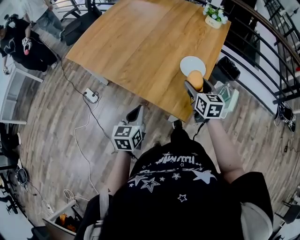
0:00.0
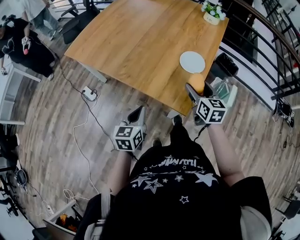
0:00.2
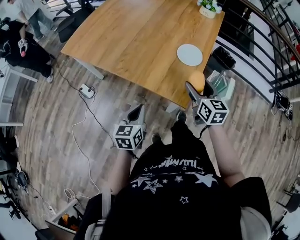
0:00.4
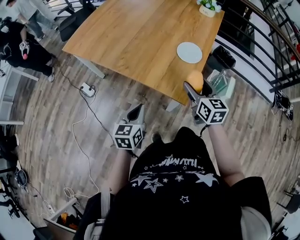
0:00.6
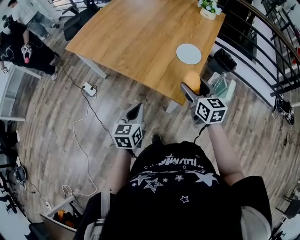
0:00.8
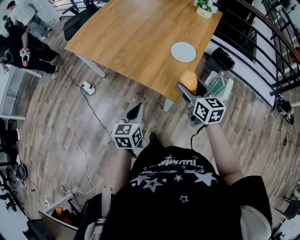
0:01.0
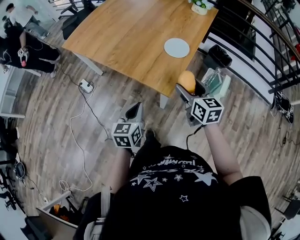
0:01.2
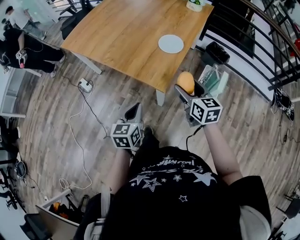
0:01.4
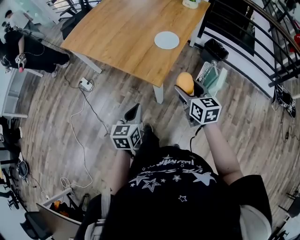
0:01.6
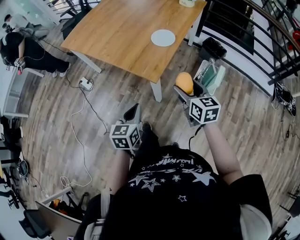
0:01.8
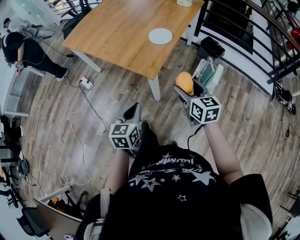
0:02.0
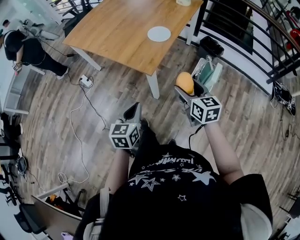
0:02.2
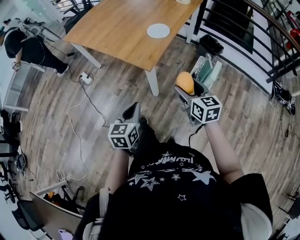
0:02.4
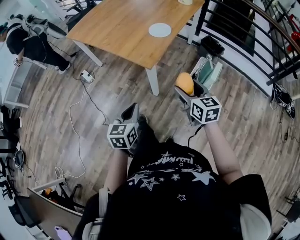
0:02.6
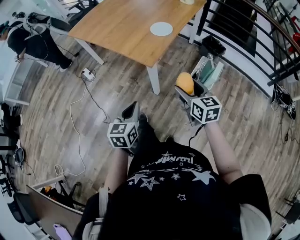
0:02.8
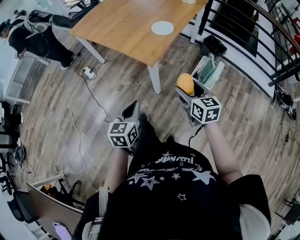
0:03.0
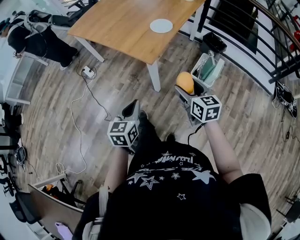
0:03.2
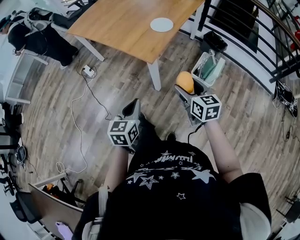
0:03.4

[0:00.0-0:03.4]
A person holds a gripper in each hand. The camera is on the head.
0:00.0 to 0:01.6: The right gripper moves backward, approximately 15 cm. Meanwhile the left gripper travels backward and to the right by about 15 cm.
0:01.6 to 0:03.4: The grippers both shift backward by approximately 10 cm.

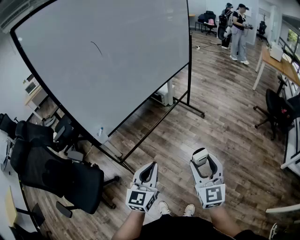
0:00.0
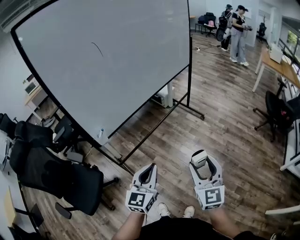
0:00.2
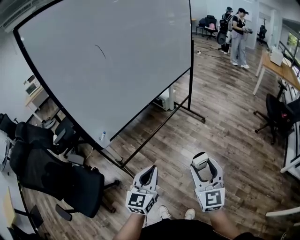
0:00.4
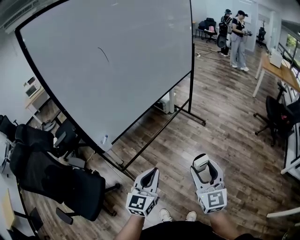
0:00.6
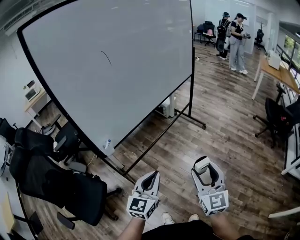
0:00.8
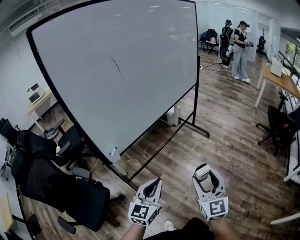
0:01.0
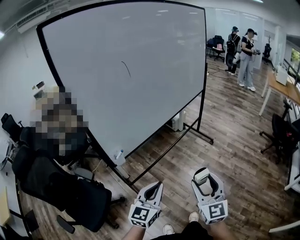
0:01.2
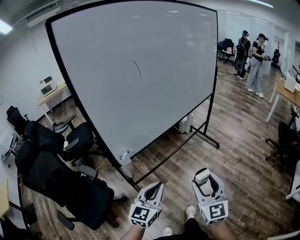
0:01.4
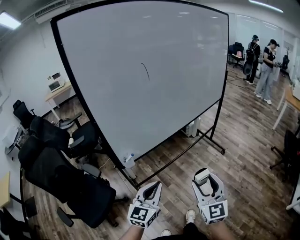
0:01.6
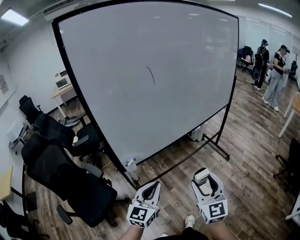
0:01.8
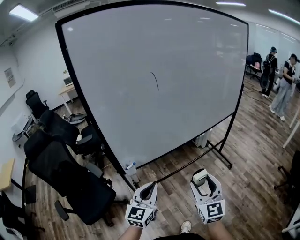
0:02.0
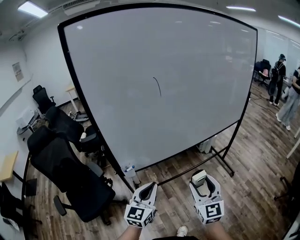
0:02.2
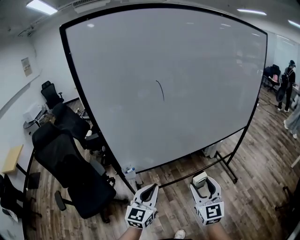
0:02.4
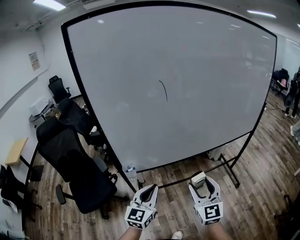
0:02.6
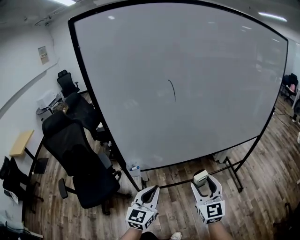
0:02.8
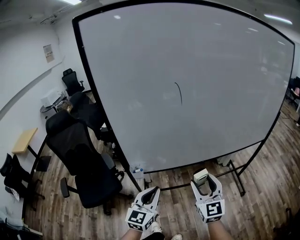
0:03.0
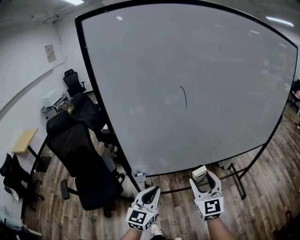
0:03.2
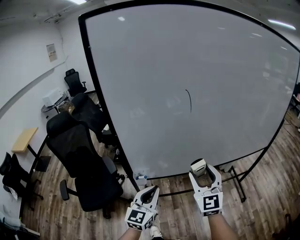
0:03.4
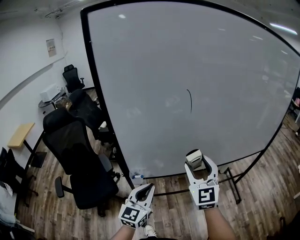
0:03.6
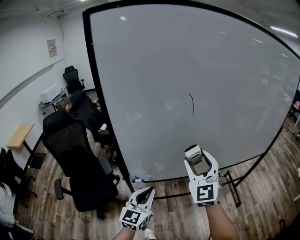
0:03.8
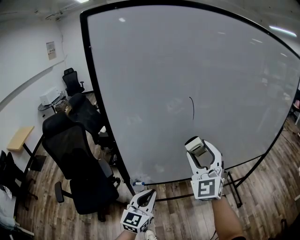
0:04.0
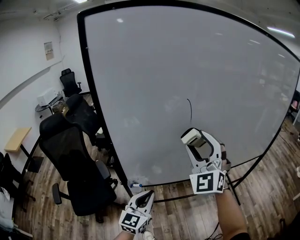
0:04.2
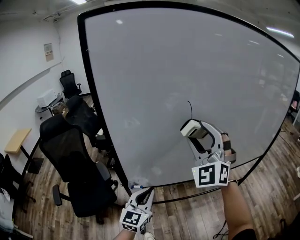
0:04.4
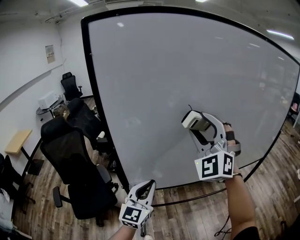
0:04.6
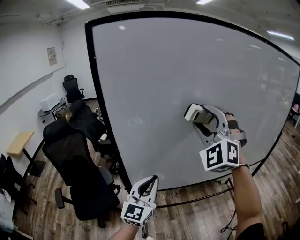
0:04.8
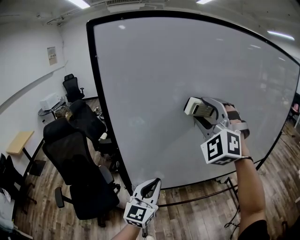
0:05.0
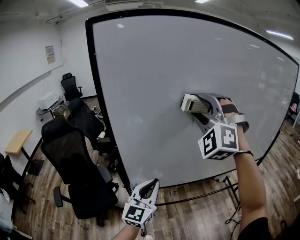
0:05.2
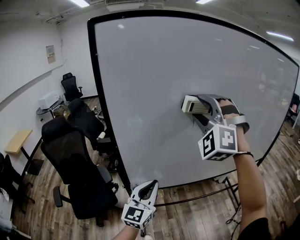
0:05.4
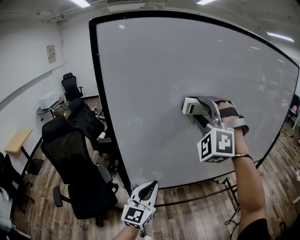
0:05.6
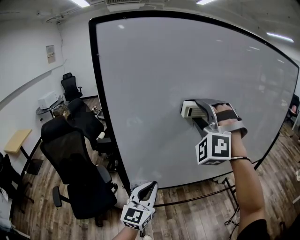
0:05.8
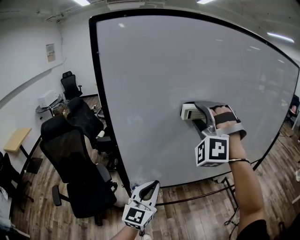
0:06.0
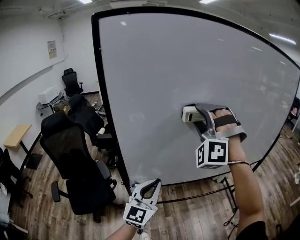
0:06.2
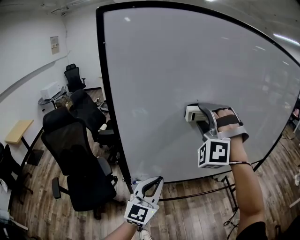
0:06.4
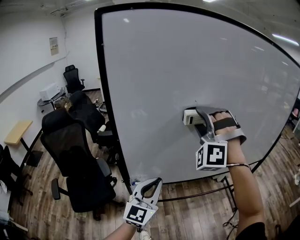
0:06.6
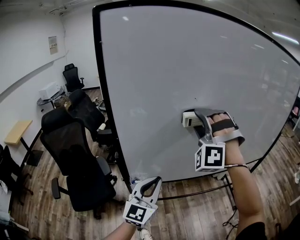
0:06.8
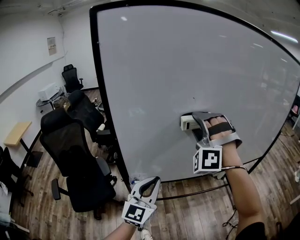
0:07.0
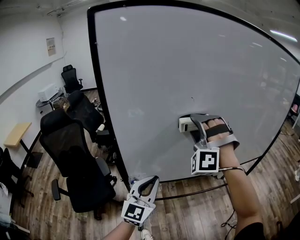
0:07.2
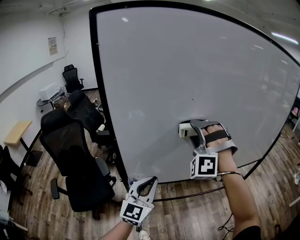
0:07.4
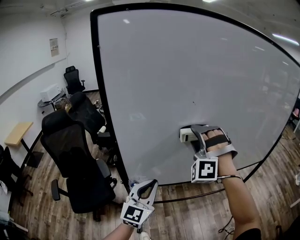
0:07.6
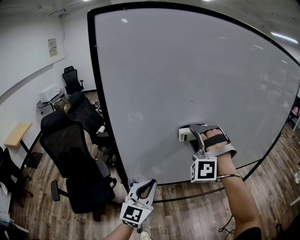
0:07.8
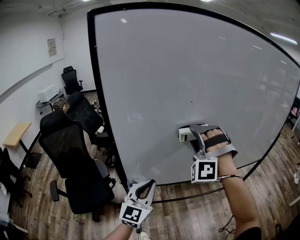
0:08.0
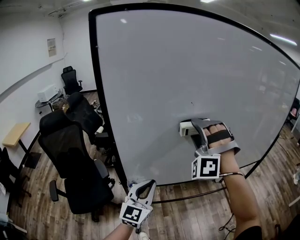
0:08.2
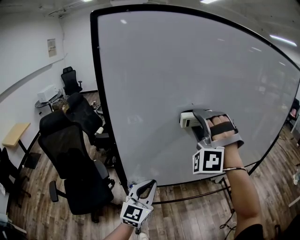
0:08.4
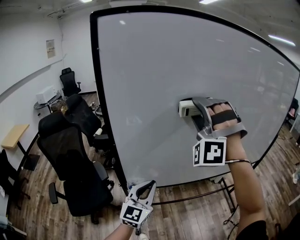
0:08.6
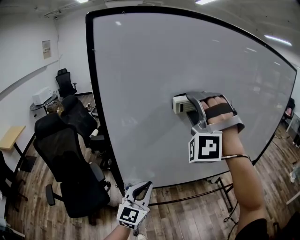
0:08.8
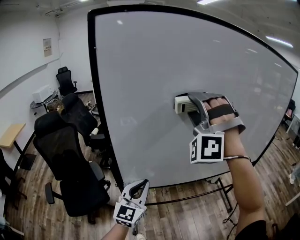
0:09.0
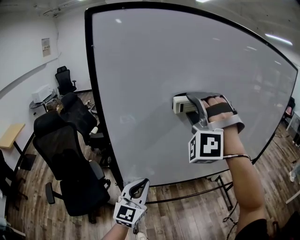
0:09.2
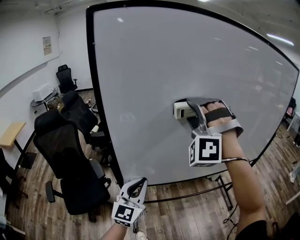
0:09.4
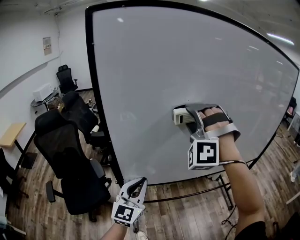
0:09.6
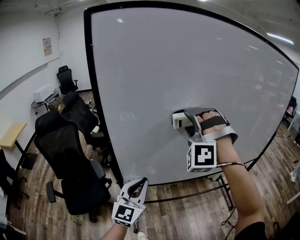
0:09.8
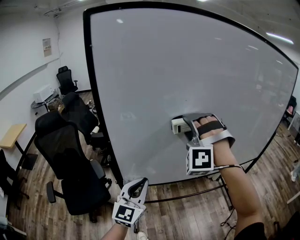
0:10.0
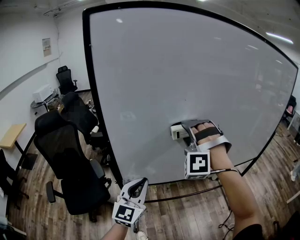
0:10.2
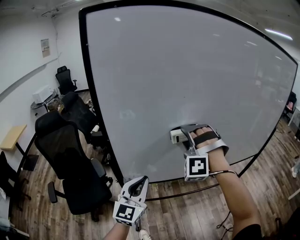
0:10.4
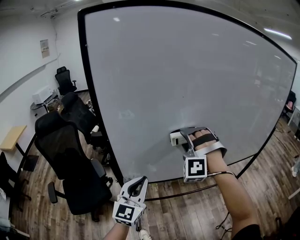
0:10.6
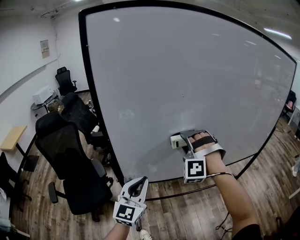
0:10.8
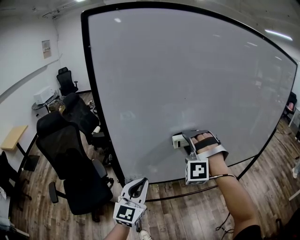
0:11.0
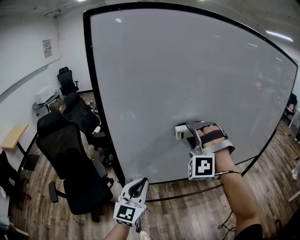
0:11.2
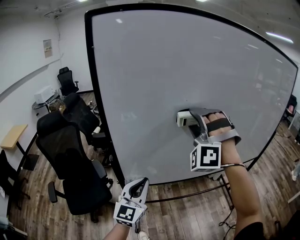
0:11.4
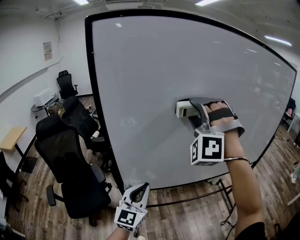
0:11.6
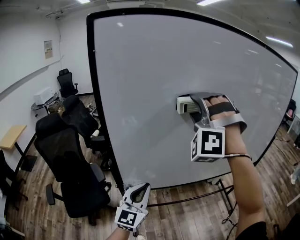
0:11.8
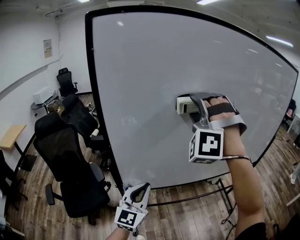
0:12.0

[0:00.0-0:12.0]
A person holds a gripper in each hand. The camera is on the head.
0:00.0 to 0:01.6: The left gripper ends up roughly 15 cm from where it was.
0:01.6 to 0:03.0: The left gripper moves about 15 cm, and changes its angle by roughly 30 degrees.
0:03.0 to 0:04.4: The left gripper ends up some 10 cm from where it was.
0:04.4 to 0:06.0: The left gripper heads upward, covering approximately 5 cm.

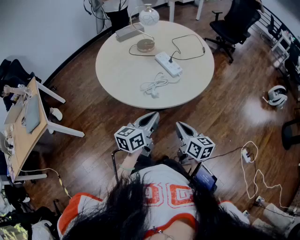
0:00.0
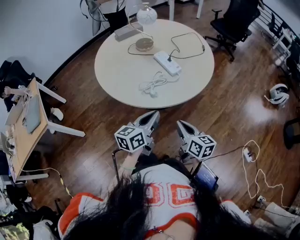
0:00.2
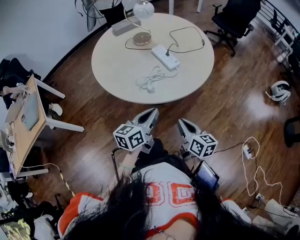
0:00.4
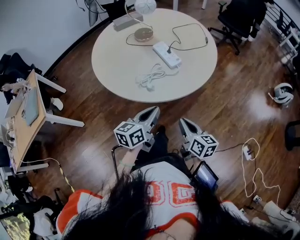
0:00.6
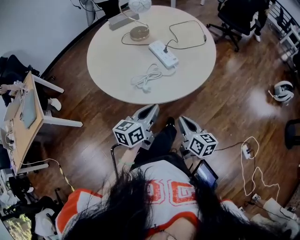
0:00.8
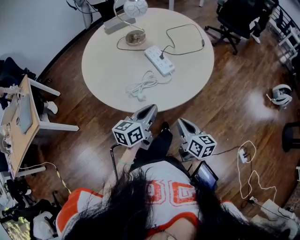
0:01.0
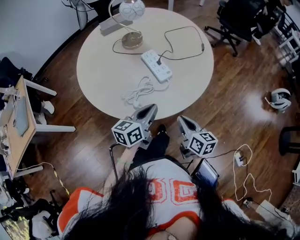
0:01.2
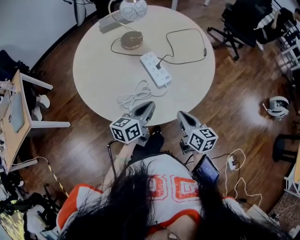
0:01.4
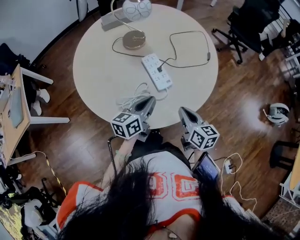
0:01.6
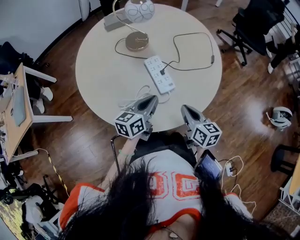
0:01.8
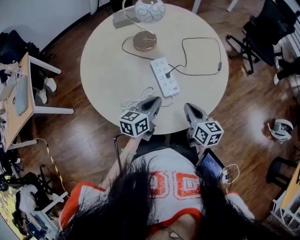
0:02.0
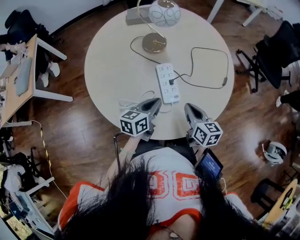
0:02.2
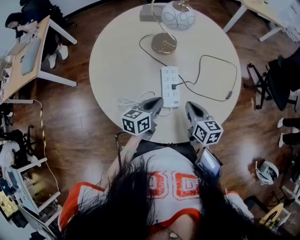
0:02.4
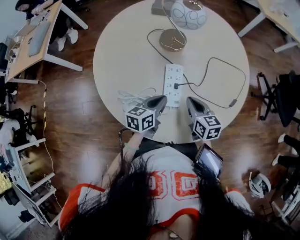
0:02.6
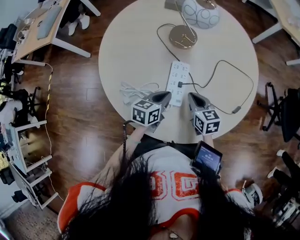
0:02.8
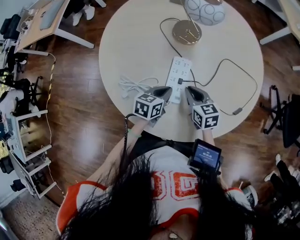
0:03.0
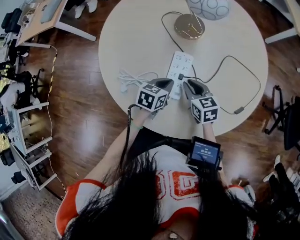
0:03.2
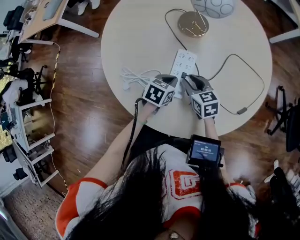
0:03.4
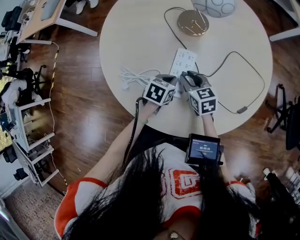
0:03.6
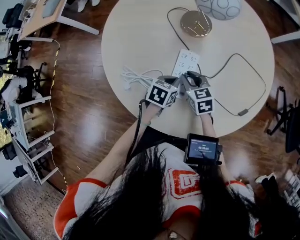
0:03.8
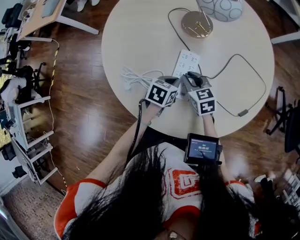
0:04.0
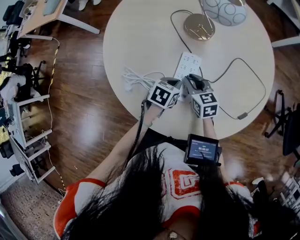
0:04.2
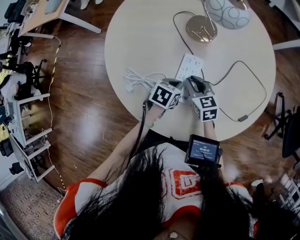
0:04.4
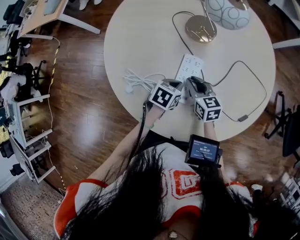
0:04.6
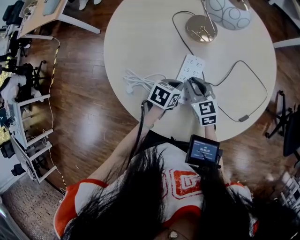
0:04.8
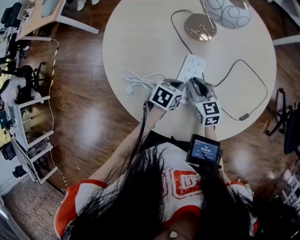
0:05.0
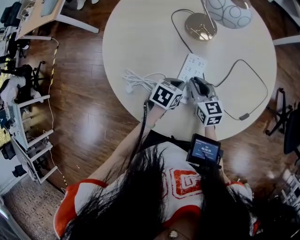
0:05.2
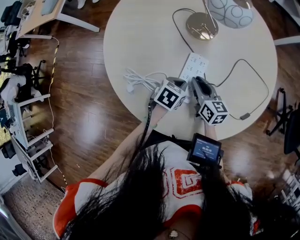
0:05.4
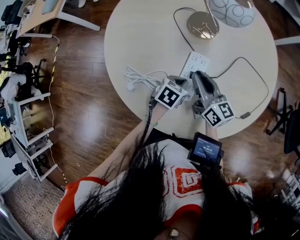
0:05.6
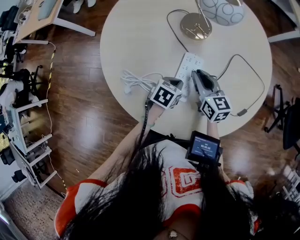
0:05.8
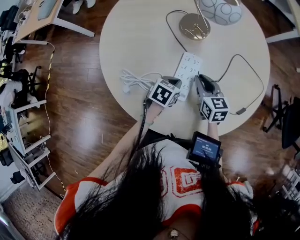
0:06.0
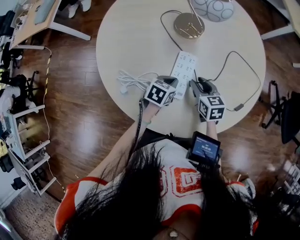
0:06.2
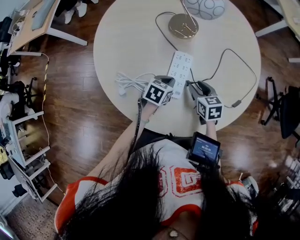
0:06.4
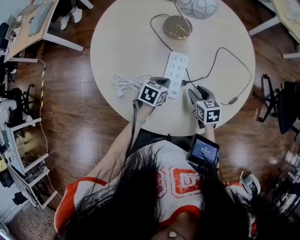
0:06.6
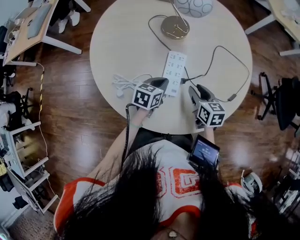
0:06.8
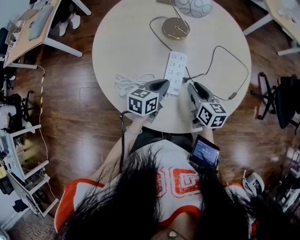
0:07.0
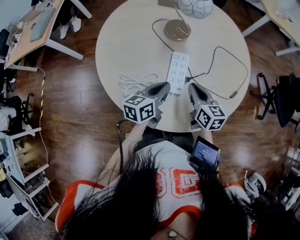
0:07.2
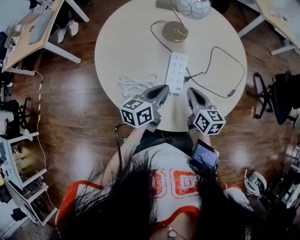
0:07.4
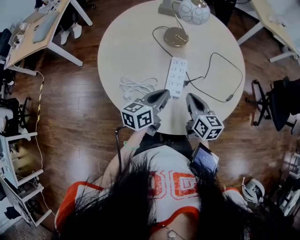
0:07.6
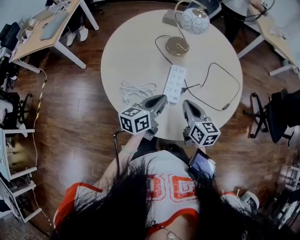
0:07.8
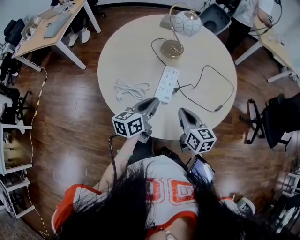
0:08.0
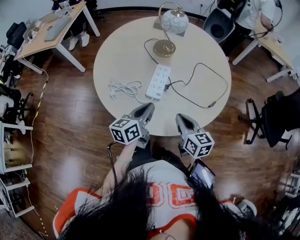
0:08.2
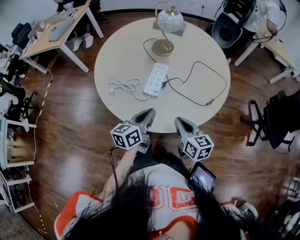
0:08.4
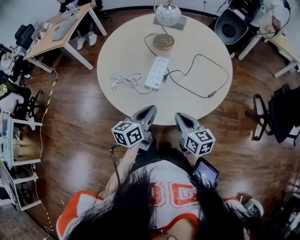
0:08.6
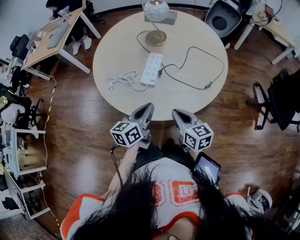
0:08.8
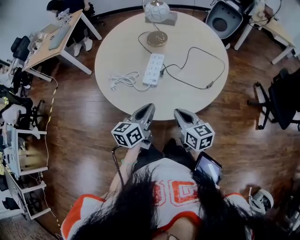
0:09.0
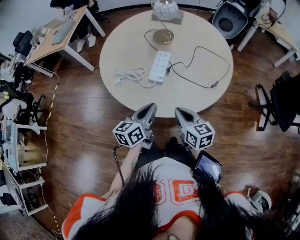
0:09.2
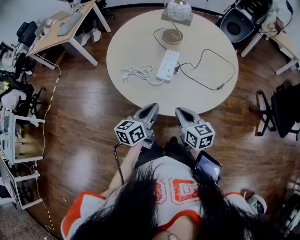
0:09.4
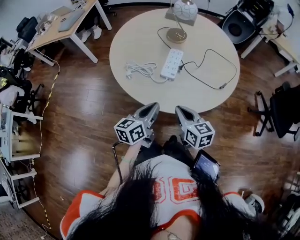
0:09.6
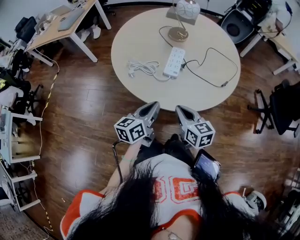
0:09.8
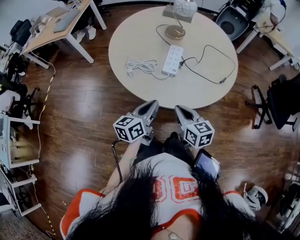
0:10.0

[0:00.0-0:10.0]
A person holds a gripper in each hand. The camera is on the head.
0:00.0 to 0:01.4: The two grippers go roughly 20 cm forward and to the right.
0:01.4 to 0:02.8: The left gripper shifts by roughly 15 cm, and turns by some 40 degrees. The right gripper moves approximately 25 cm, and swivels approximately 50 degrees.
0:02.8 to 0:04.2: The right gripper ends up approximately 5 cm from where it was, while the left gripper heads downward, covering about 5 cm, and changes its angle by roughly 20 degrees.
0:04.2 to 0:05.8: The right gripper travels upward by approximately 5 cm.
0:05.8 to 0:07.2: The left gripper is displaced upward by about 15 cm, and points its fingers roughly 40 degrees further upward. The right gripper is displaced backward by about 10 cm, moves roughly 5 cm downward and comes back, and opens, then closes once more.
0:07.2 to 0:08.6: Both grippers move backward and to the right, roughly 15 cm.
0:08.6 to 0:10.0: The left gripper goes approximately 10 cm to the left and backward. The right gripper goes approximately 10 cm to the left.
